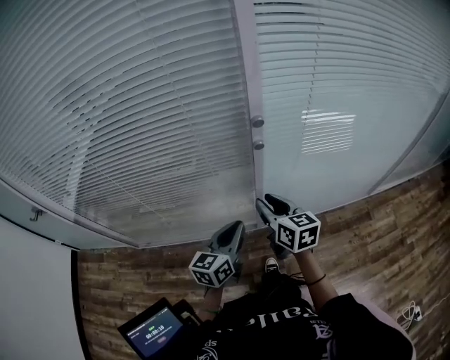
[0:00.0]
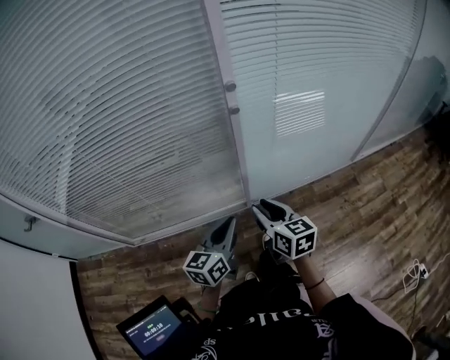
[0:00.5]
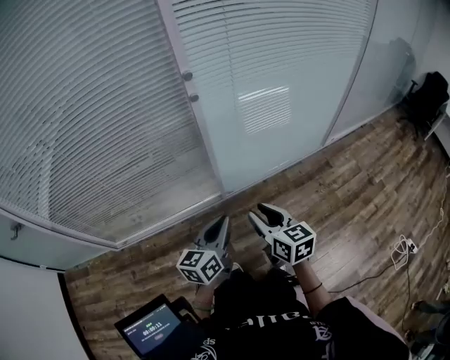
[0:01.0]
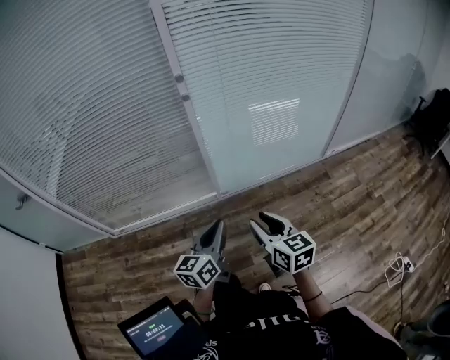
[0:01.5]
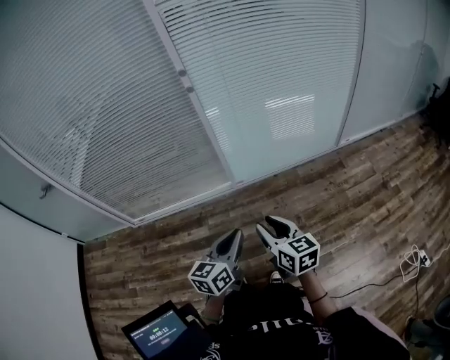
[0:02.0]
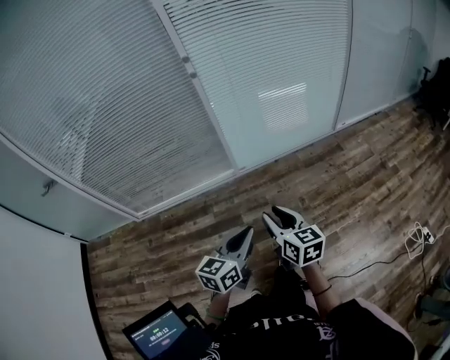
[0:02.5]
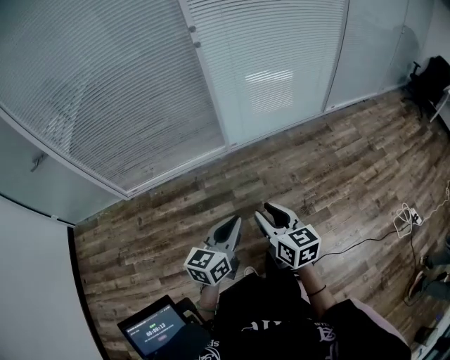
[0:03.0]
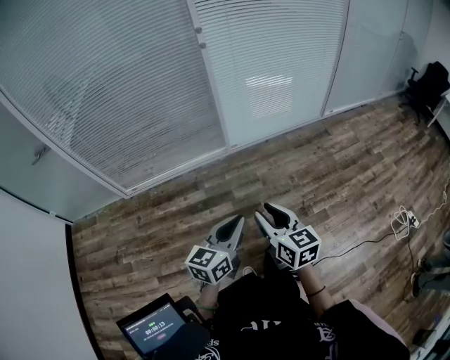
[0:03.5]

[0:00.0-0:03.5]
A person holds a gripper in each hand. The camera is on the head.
0:00.0 to 0:02.0: Both grippers are carried backward and to the right, some 50 cm.
0:02.0 to 0:03.5: Both grippers move backward and to the left, about 30 cm.

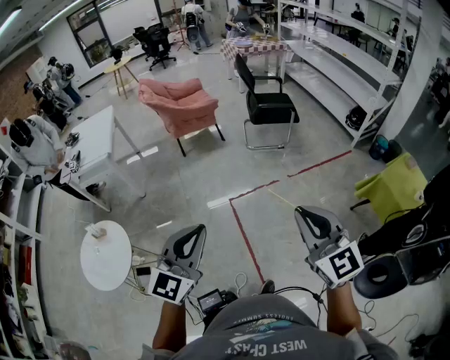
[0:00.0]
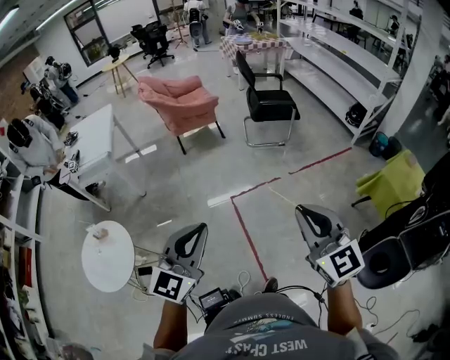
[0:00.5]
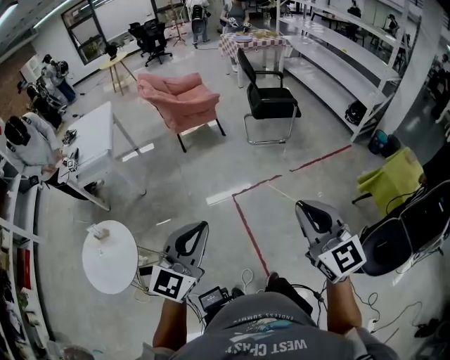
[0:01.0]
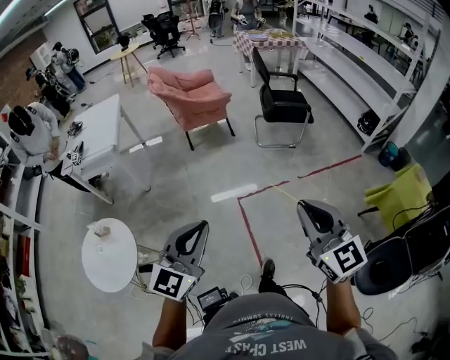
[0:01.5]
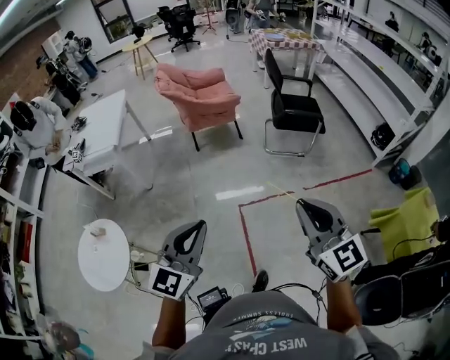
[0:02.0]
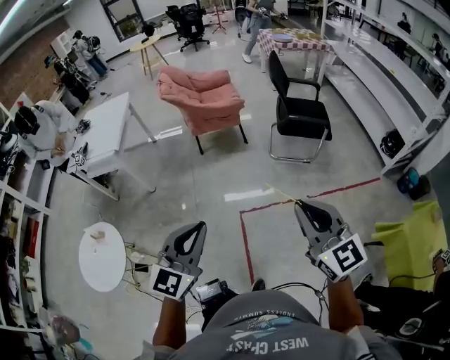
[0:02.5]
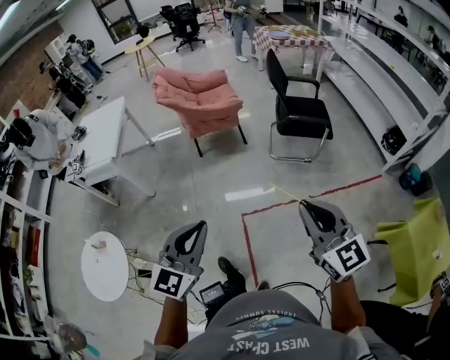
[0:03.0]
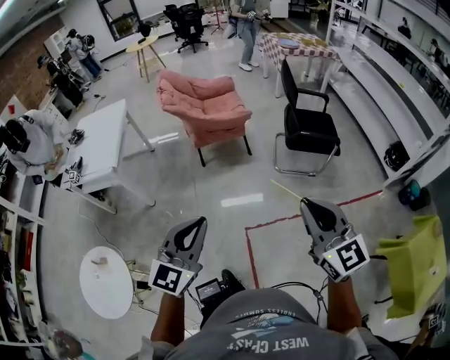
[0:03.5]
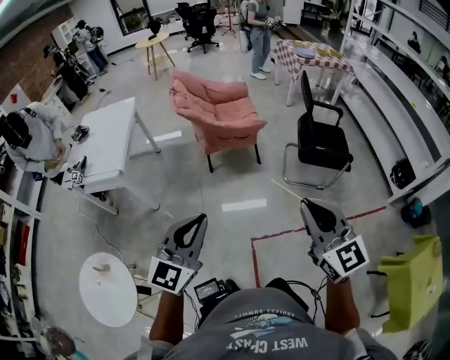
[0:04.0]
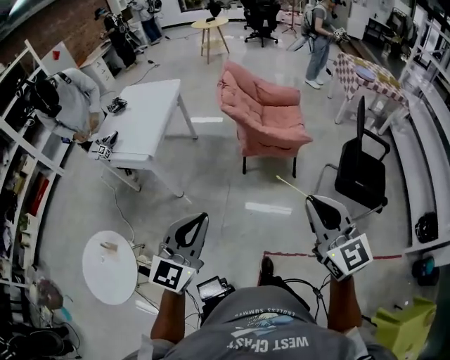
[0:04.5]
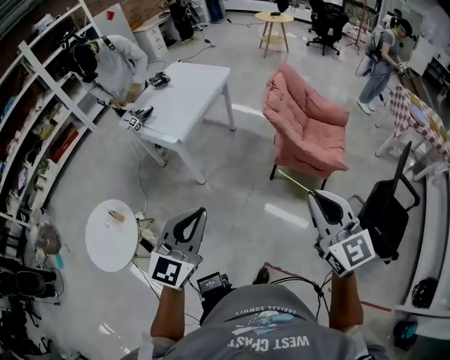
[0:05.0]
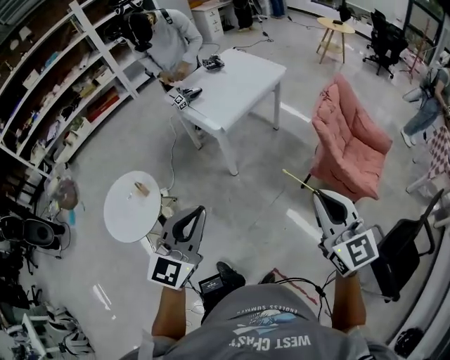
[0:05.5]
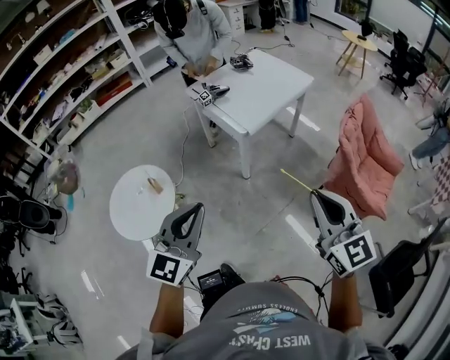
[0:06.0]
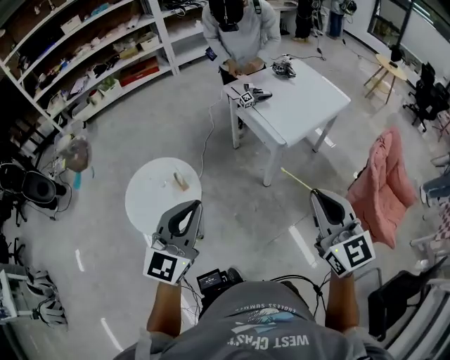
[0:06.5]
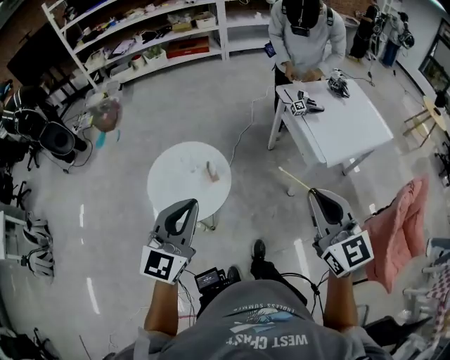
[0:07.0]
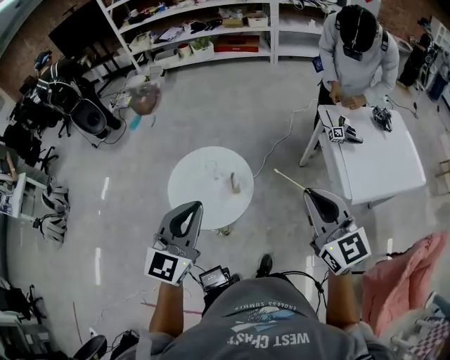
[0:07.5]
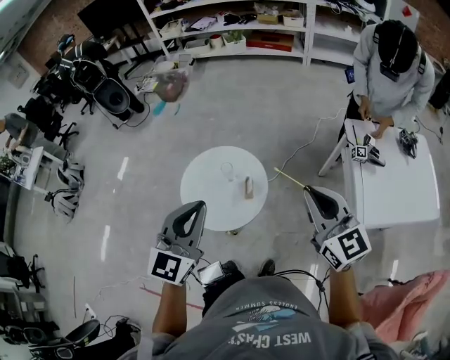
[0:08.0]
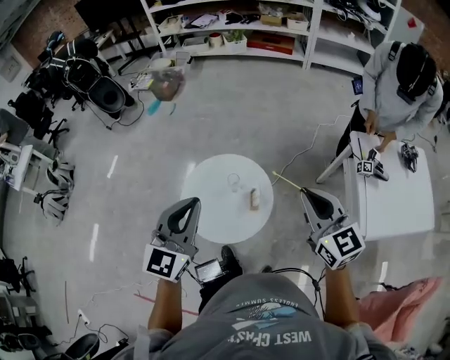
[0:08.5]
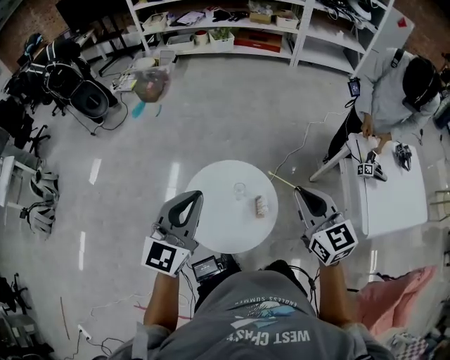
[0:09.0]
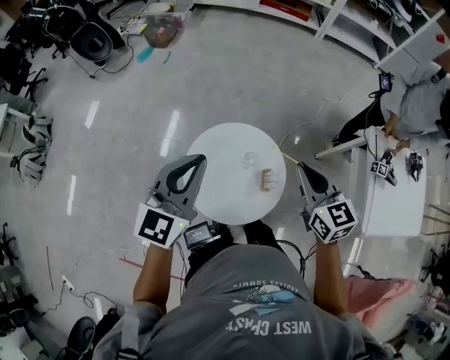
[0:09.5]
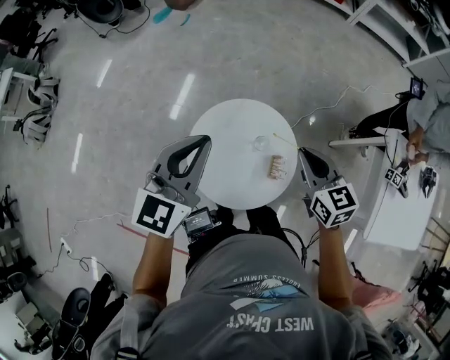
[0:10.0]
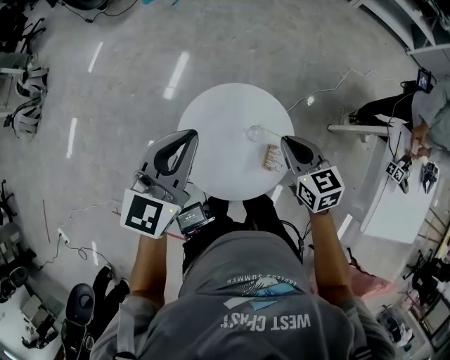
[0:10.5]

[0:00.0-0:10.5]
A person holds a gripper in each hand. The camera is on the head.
0:00.0 to 0:02.0: The grippers both shift forward by approximately 15 cm.
0:02.0 to 0:04.0: The two grippers go roughly 25 cm forward.
0:04.0 to 0:06.5: The left gripper ends up some 35 cm from where it was, and turns by approximately 70 degrees; the right gripper ends up approximately 50 cm from where it was, and turns by some 60 degrees.
0:06.5 to 0:08.5: The right gripper ends up about 40 cm from where it was, and rotates about 40 degrees, while the left gripper ends up roughly 30 cm from where it was, and turns by approximately 40 degrees.
0:08.5 to 0:10.5: The left gripper is displaced forward, to the left and downward by some 20 cm, while the right gripper shifts approximately 30 cm downward, forward and to the left, and rotates about 30 degrees.

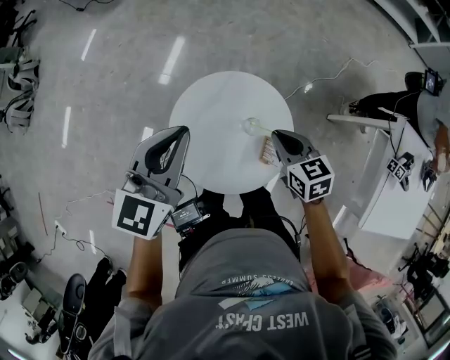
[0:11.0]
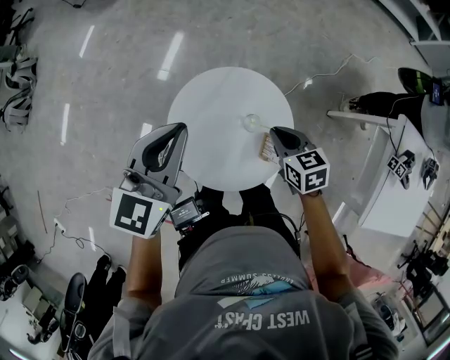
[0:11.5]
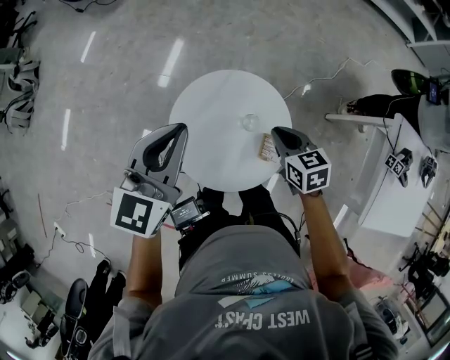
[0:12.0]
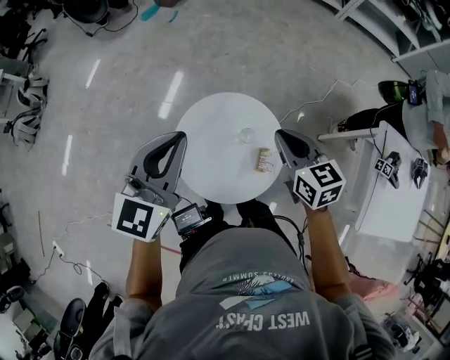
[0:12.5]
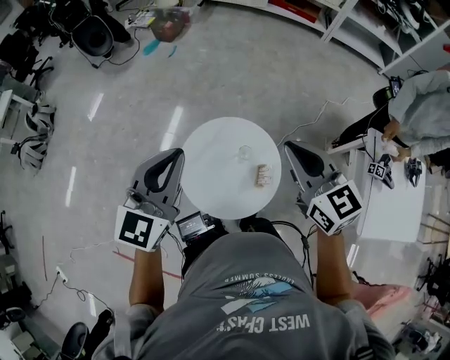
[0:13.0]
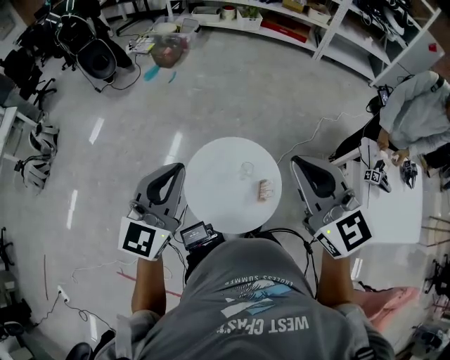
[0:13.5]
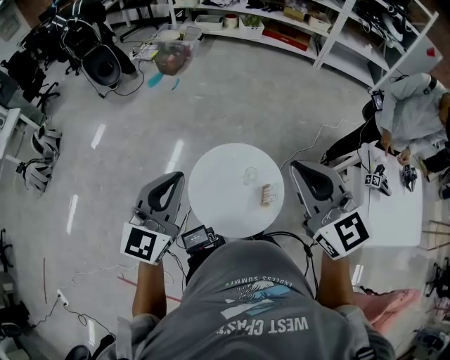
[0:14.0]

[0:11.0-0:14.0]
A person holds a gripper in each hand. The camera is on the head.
0:11.0 to 0:12.5: The right gripper moves upward, roughly 10 cm; the left gripper heads upward, covering approximately 5 cm.
0:12.5 to 0:14.0: The right gripper goes roughly 25 cm upward, and changes its angle by roughly 30 degrees, while the left gripper travels backward and upward by approximately 10 cm.

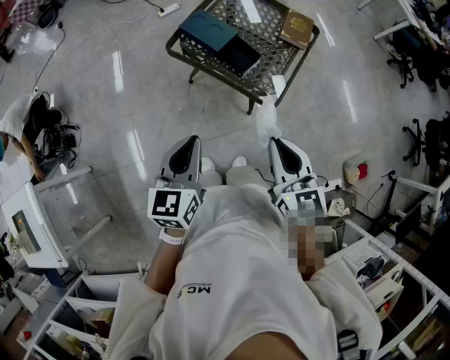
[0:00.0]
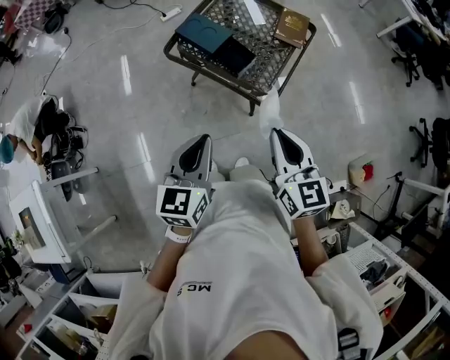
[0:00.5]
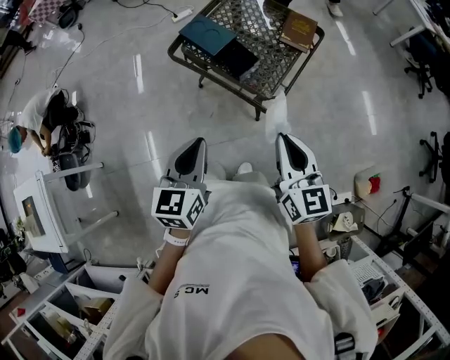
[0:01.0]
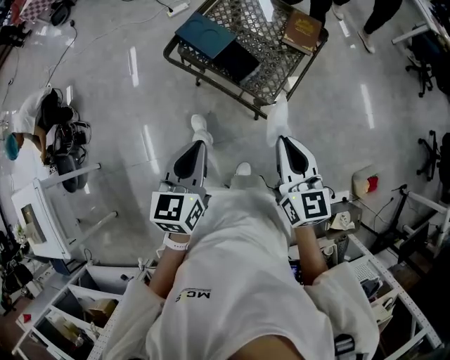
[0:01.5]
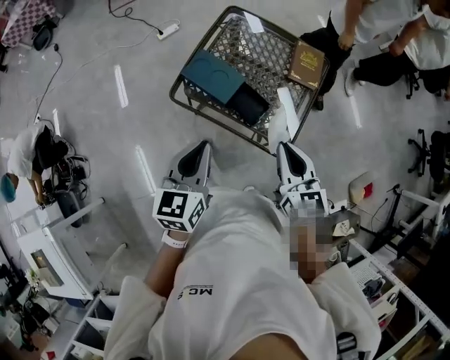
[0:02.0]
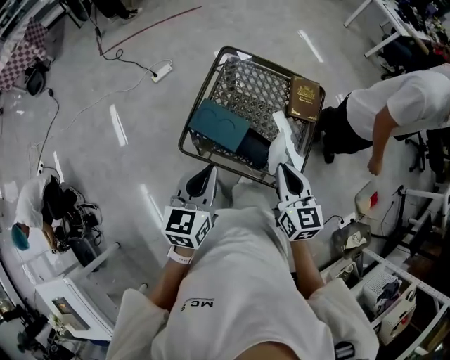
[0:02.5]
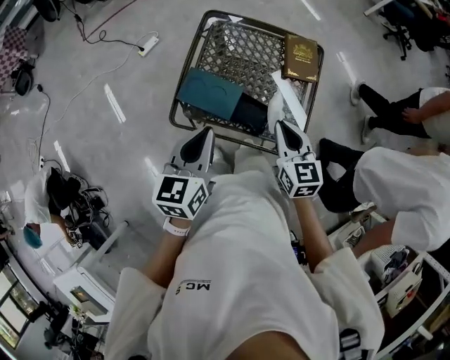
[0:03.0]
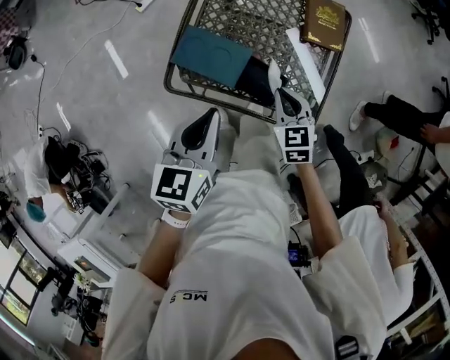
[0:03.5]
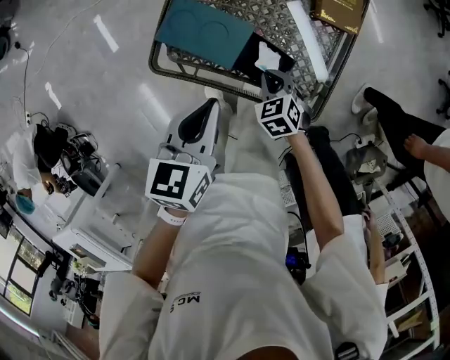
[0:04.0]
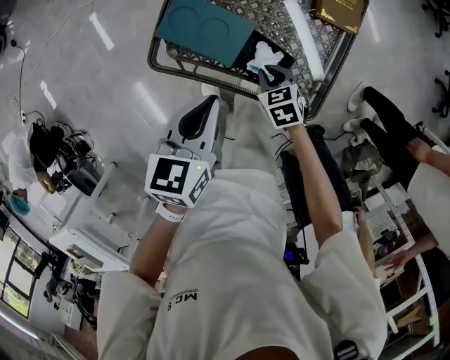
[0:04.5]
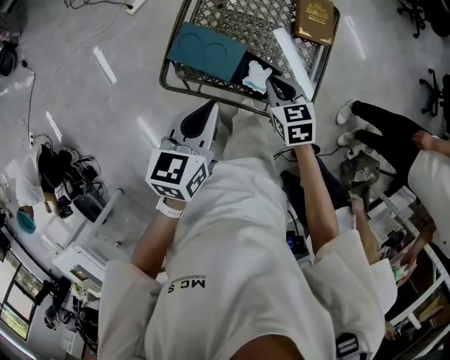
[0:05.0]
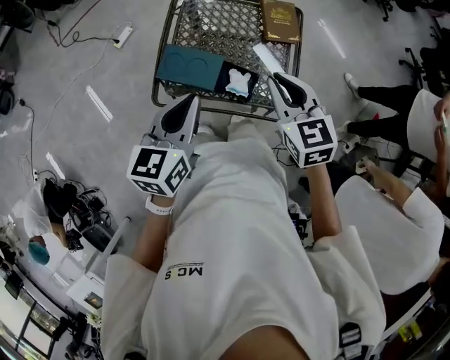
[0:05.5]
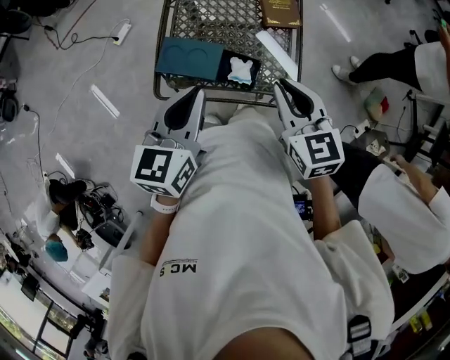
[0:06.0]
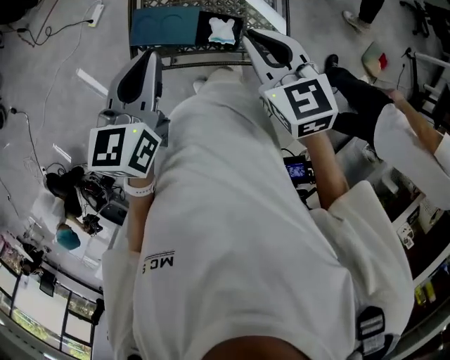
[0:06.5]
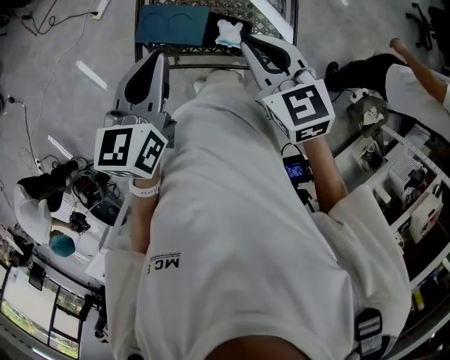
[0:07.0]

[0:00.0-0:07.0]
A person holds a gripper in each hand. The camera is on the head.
0:00.0 to 0:02.0: The two grippers go about 20 cm forward.
0:02.0 to 0:03.5: The right gripper travels downward and forward by approximately 25 cm, and changes its angle by about 20 degrees. The left gripper travels forward and downward by about 15 cm.
0:03.5 to 0:05.0: The right gripper goes downward and returns, about 15 cm each way.
0:05.0 to 0:07.0: The right gripper goes some 15 cm upward, while the left gripper heads upward, covering roughly 10 cm.

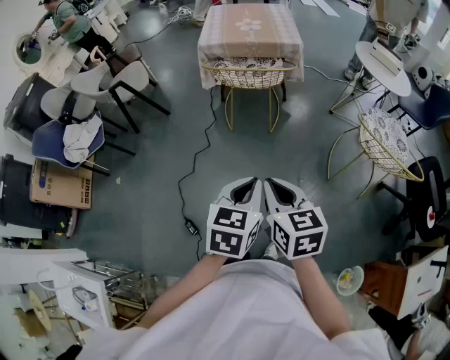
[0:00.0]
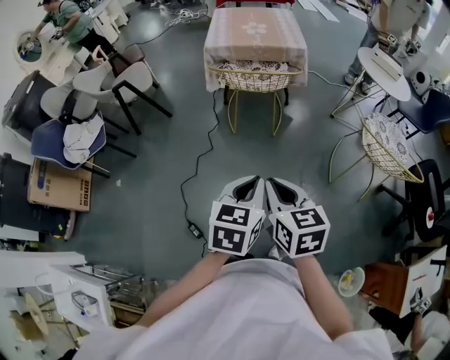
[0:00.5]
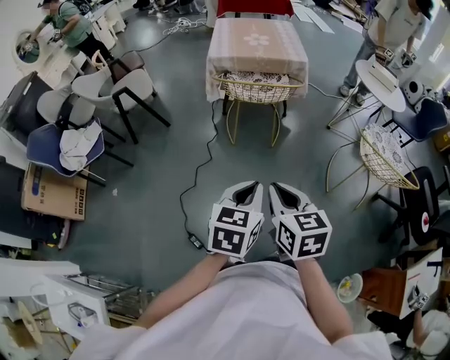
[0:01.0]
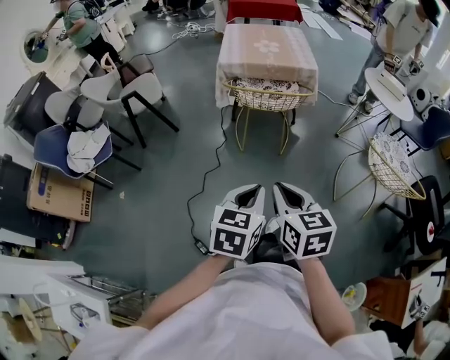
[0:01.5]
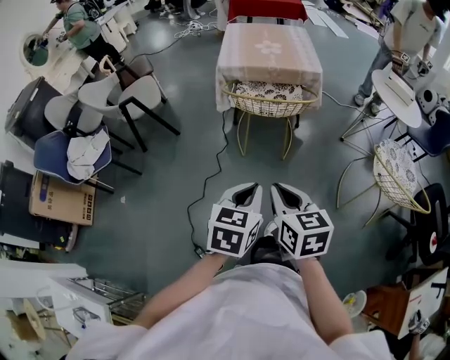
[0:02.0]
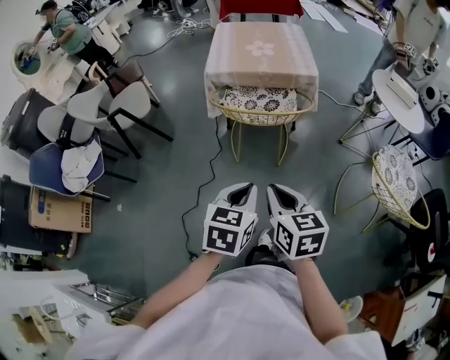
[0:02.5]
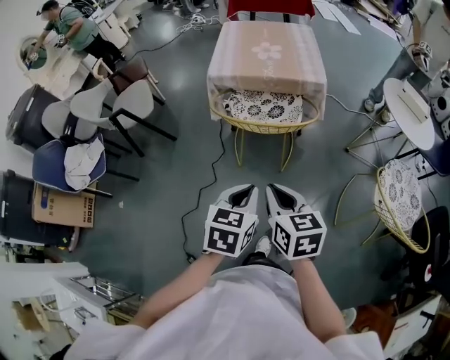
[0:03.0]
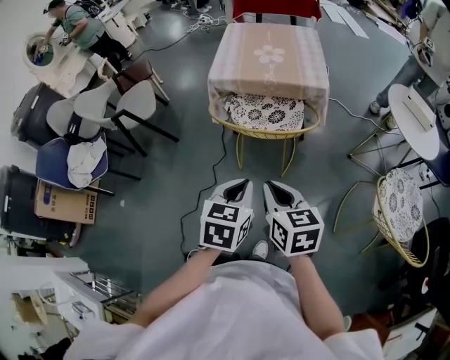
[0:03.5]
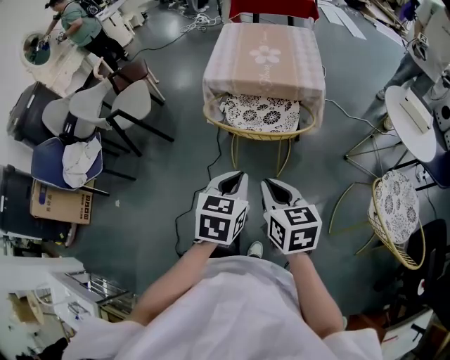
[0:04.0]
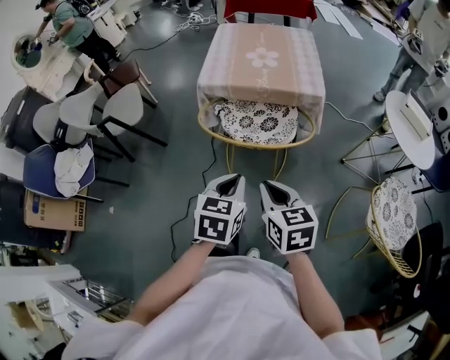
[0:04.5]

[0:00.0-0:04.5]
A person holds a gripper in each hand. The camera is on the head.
0:00.0 to 0:02.0: The two grippers go some 15 cm forward and to the left.
0:02.0 to 0:04.5: Both grippers move forward, about 25 cm.
